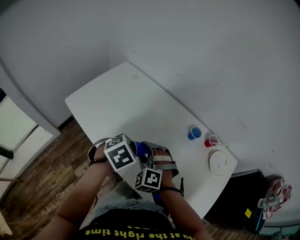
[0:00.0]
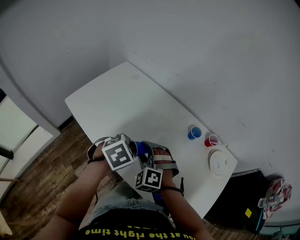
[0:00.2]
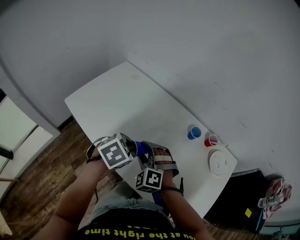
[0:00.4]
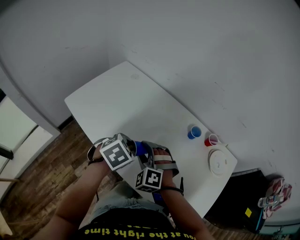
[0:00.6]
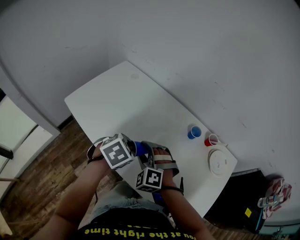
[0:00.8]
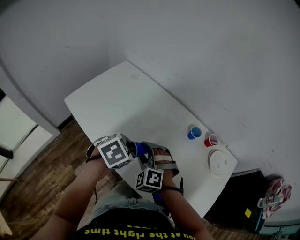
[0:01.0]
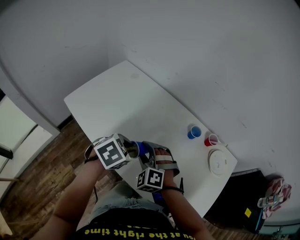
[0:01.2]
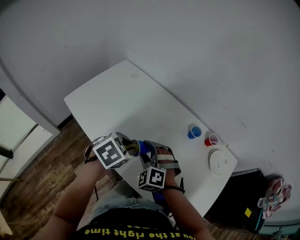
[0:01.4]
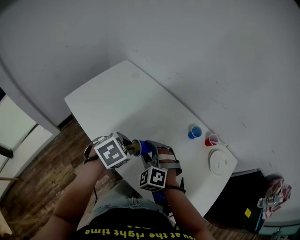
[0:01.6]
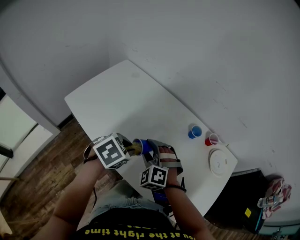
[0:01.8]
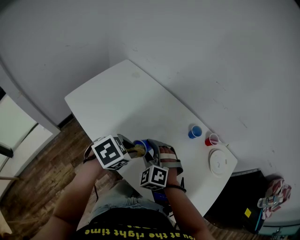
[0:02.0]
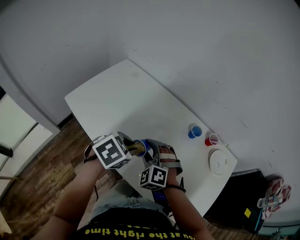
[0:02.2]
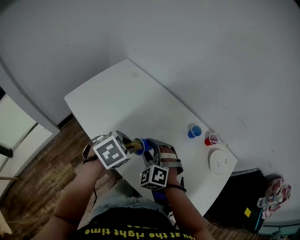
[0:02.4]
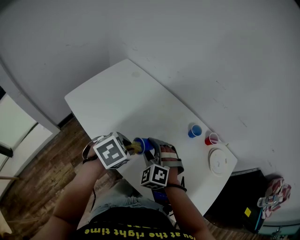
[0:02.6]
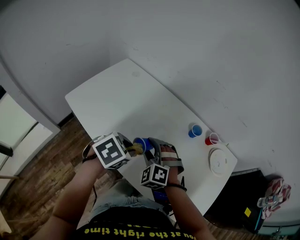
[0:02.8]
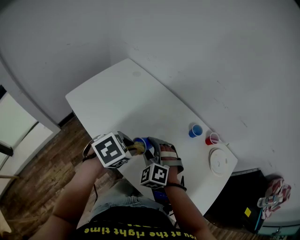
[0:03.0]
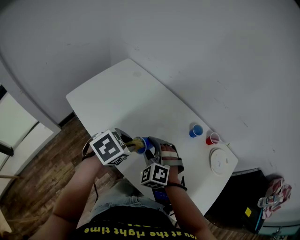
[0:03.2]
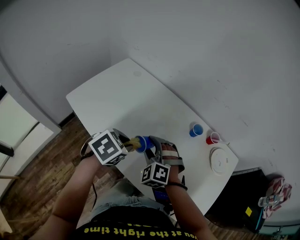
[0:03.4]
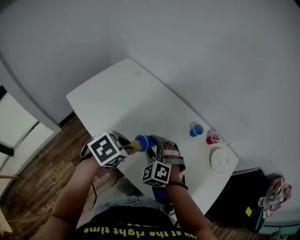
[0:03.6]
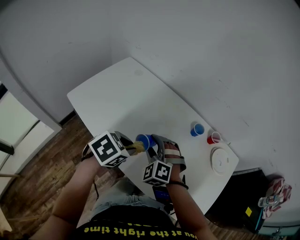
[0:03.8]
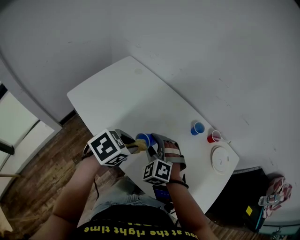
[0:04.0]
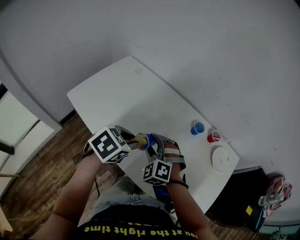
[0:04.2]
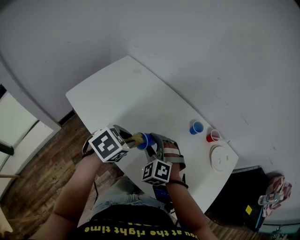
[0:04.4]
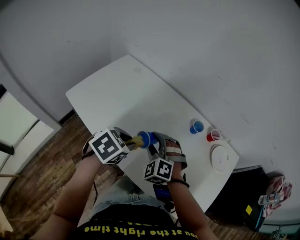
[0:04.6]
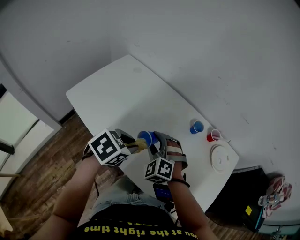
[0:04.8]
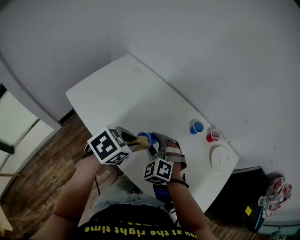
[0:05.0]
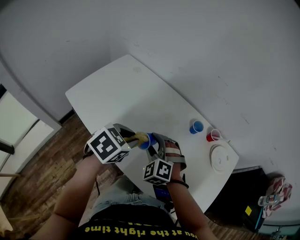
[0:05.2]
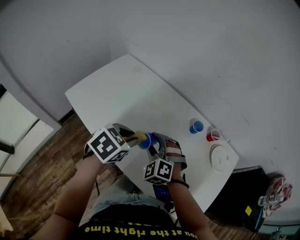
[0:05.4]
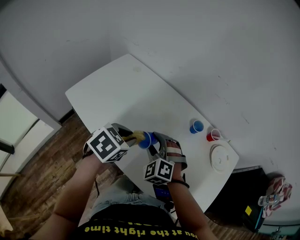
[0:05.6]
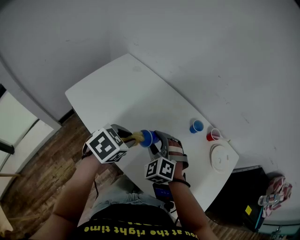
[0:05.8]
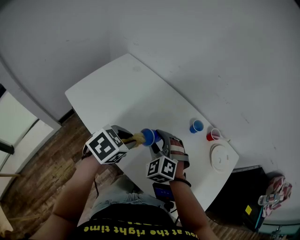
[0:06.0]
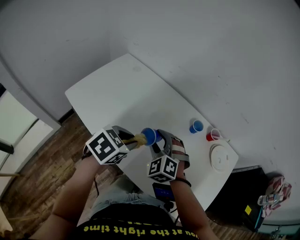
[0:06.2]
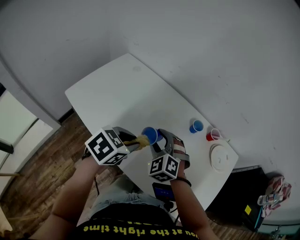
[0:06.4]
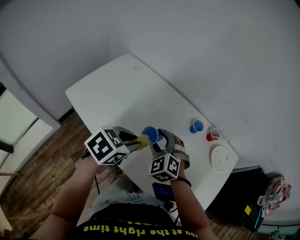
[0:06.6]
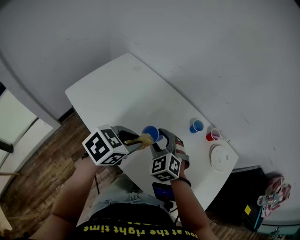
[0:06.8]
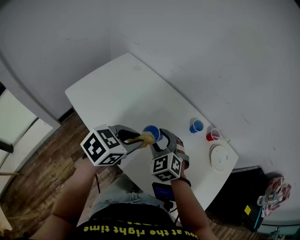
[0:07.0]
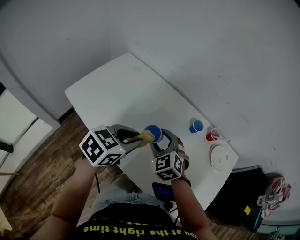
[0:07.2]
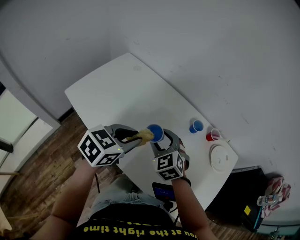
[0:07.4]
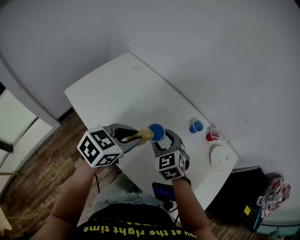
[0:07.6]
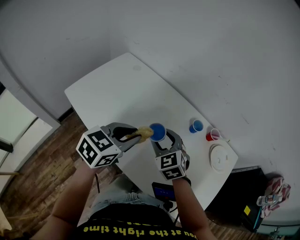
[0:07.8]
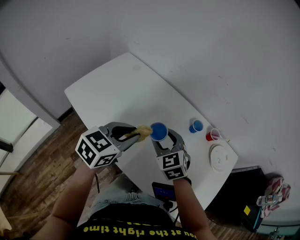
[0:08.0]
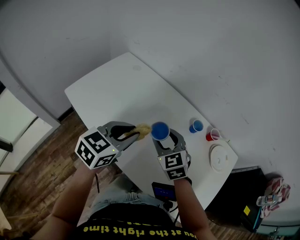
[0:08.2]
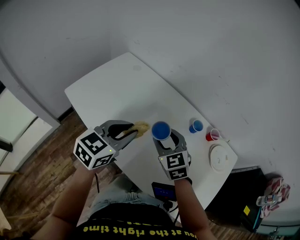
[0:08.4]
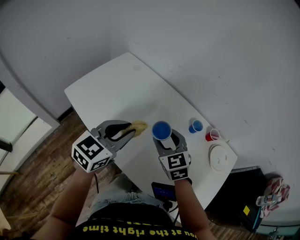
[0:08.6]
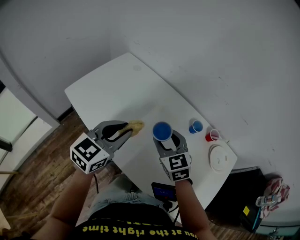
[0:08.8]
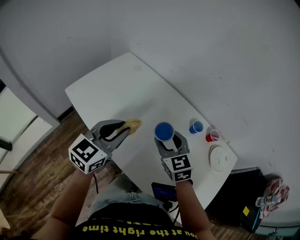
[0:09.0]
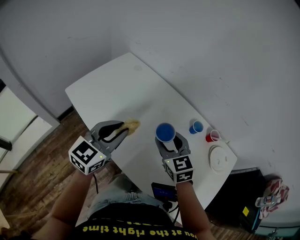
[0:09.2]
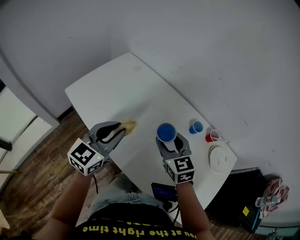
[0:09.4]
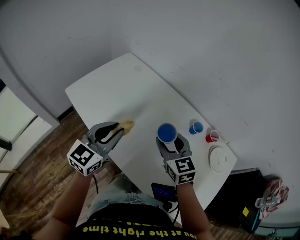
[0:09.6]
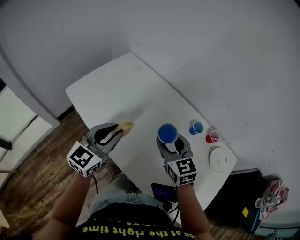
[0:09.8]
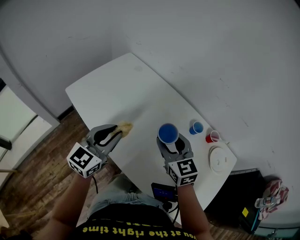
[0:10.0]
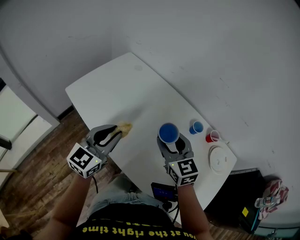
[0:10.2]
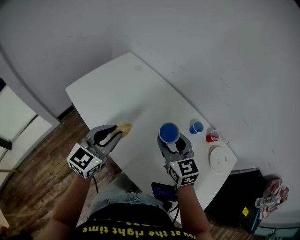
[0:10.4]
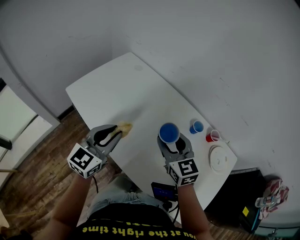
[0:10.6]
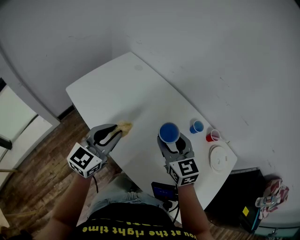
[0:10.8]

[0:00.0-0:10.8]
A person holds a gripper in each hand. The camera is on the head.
0:00.0 to 0:06.2: There are only small adjustments of the grippers.
0:06.2 to 0:07.8: The left gripper ends up approximately 5 cm from where it was, and changes its angle by about 20 degrees; the right gripper changes its angle by roughly 30 degrees.
0:07.8 to 0:09.2: The left gripper heads to the left, covering some 5 cm, and rotates about 20 degrees.
0:09.2 to 0:10.8: The grippers stay close to where they were, moving slightly.

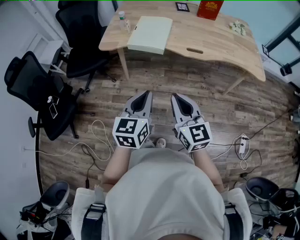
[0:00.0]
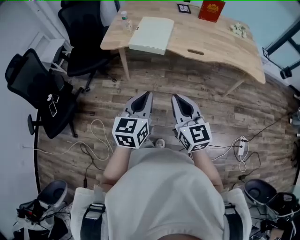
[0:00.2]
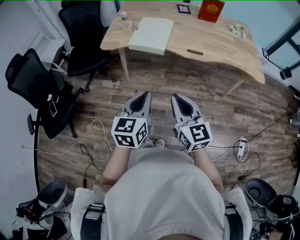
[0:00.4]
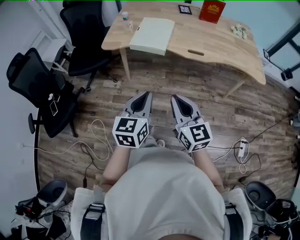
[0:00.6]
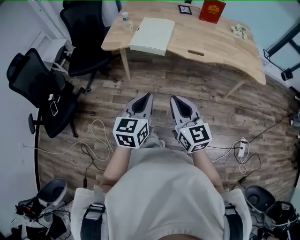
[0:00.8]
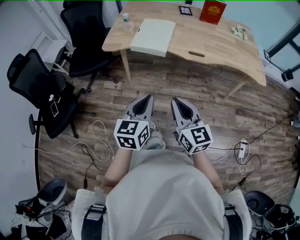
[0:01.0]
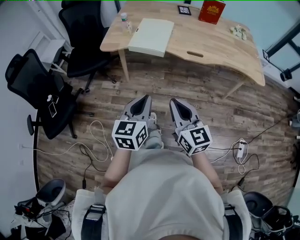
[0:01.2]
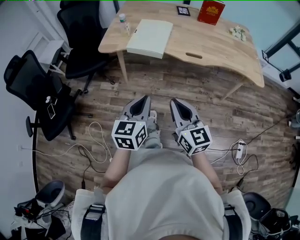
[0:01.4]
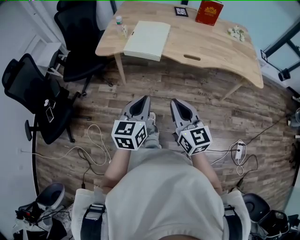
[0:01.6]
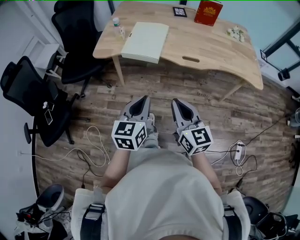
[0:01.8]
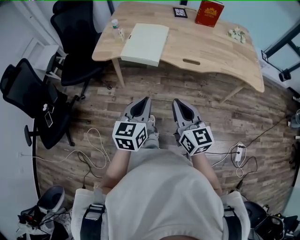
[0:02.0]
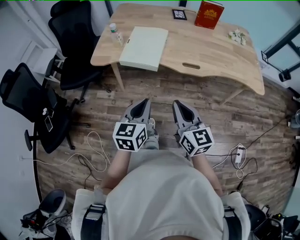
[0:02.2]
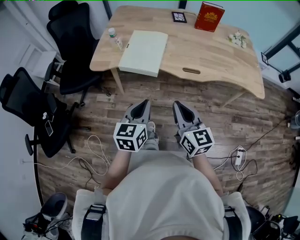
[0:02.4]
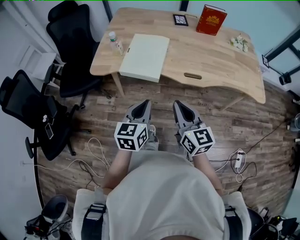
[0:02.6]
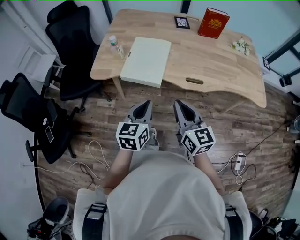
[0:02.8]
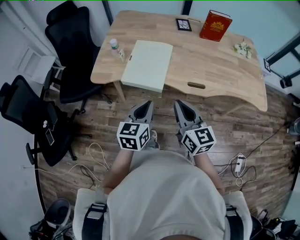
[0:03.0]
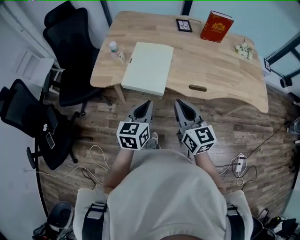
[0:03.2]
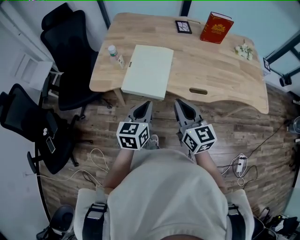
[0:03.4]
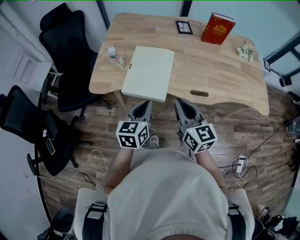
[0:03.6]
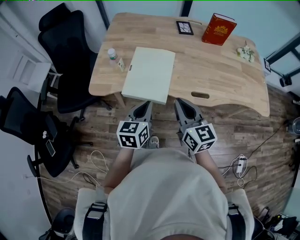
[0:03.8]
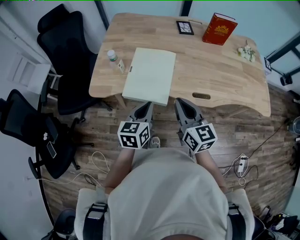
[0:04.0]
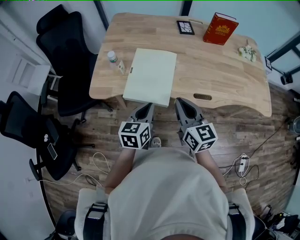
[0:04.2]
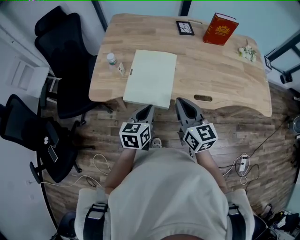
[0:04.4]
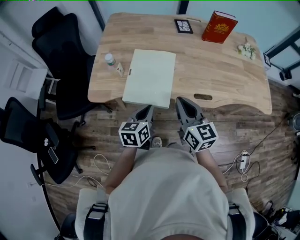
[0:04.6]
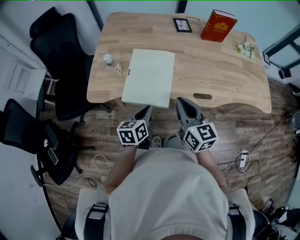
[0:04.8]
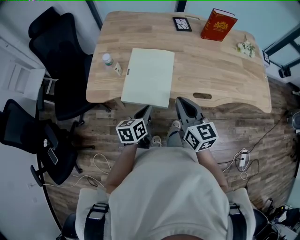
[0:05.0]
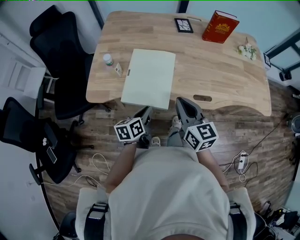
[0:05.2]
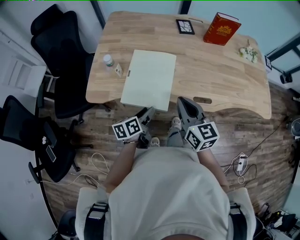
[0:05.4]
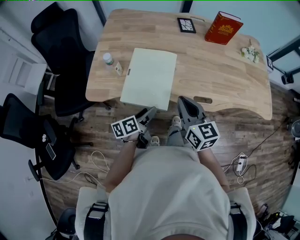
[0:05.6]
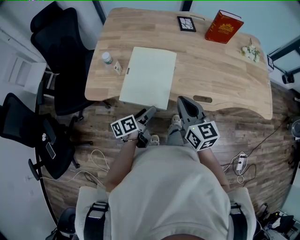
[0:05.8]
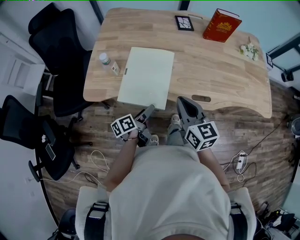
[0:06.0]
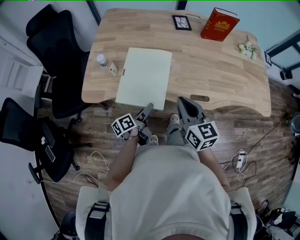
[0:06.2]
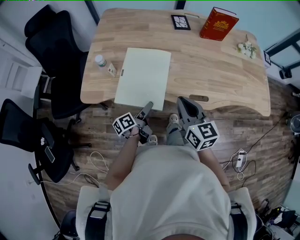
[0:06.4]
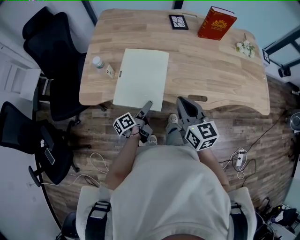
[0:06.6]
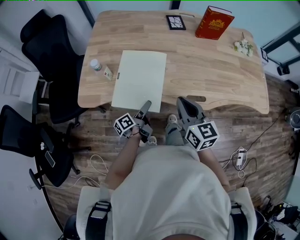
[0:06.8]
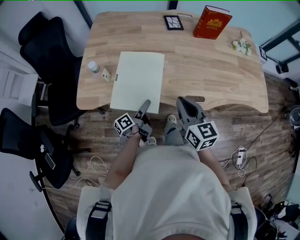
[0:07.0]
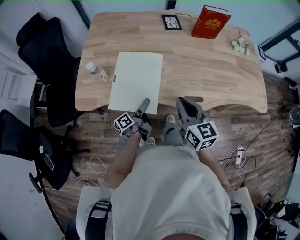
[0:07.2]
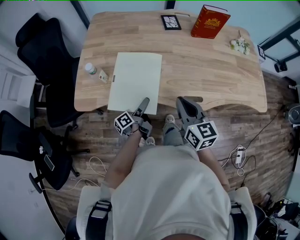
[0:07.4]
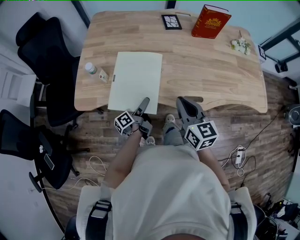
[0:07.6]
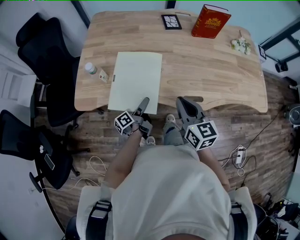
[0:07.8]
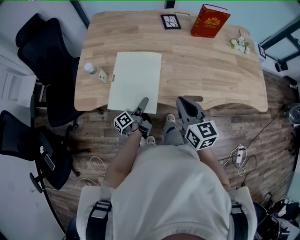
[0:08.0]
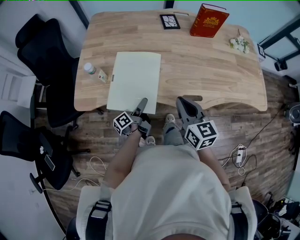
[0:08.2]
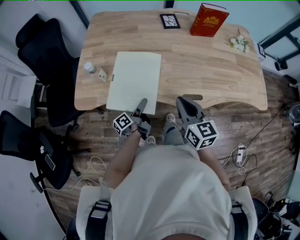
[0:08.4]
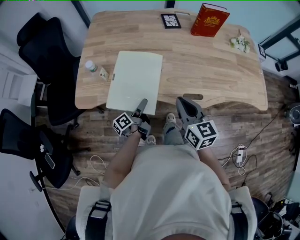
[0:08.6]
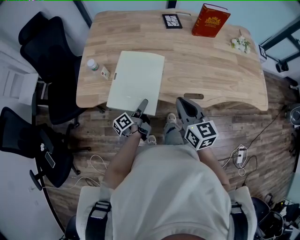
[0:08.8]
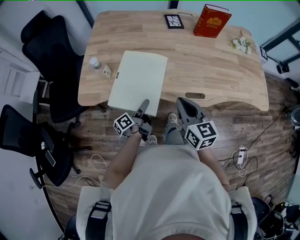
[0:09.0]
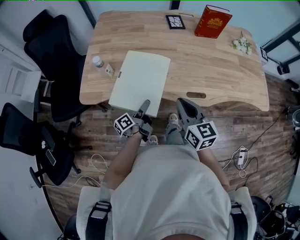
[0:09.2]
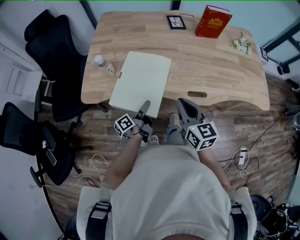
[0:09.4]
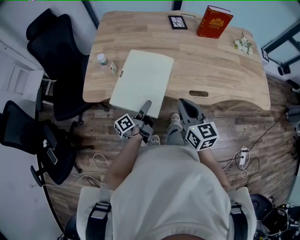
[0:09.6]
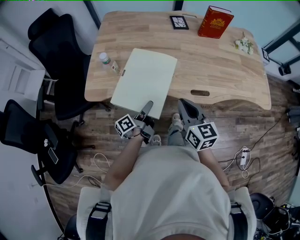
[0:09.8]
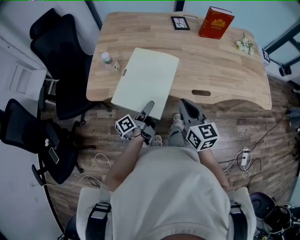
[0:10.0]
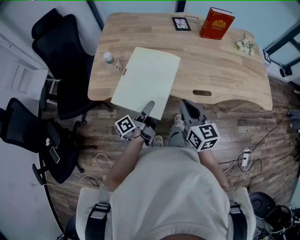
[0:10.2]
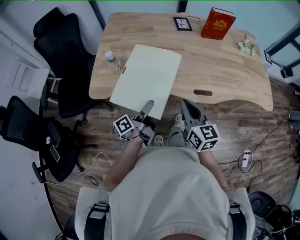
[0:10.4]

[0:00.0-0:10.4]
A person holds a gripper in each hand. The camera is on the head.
0:00.0 to 0:01.4: The grippers make only small movements.
0:01.4 to 0:03.0: The grippers both shift forward by roughly 25 cm.
0:03.0 to 0:04.4: The right gripper moves forward, approximately 10 cm. Meanwhile the left gripper is displaced forward and downward by roughly 15 cm.
0:04.4 to 0:06.0: The left gripper shifts about 10 cm downward, rolls counterclockwise, seen from behind, by some 50 degrees, and opens.
0:06.0 to 0:07.4: The left gripper shifts about 5 cm forward.
0:07.4 to 0:09.0: There are only small adjustments of the grippers.
0:09.0 to 0:10.4: The left gripper goes some 10 cm upward, while the right gripper shifts by roughly 5 cm.

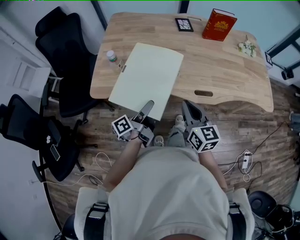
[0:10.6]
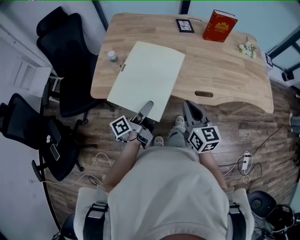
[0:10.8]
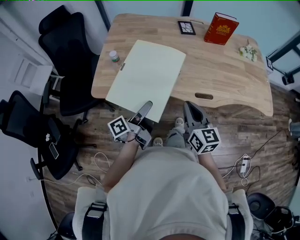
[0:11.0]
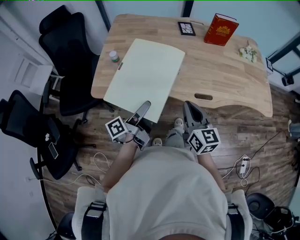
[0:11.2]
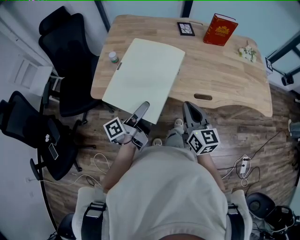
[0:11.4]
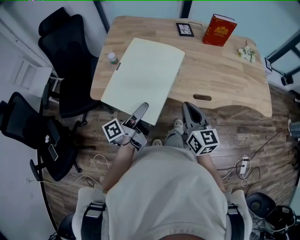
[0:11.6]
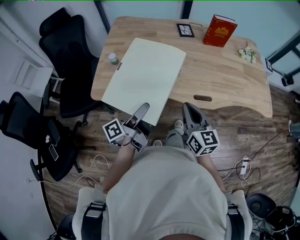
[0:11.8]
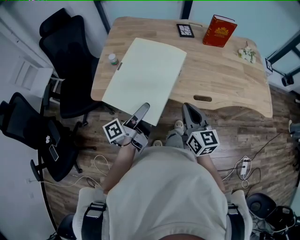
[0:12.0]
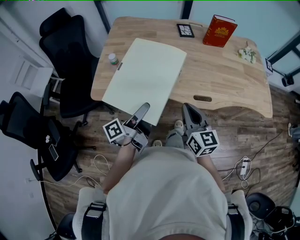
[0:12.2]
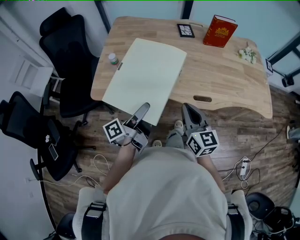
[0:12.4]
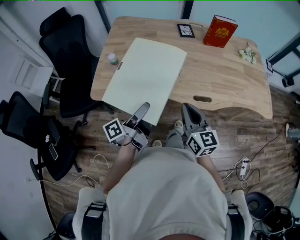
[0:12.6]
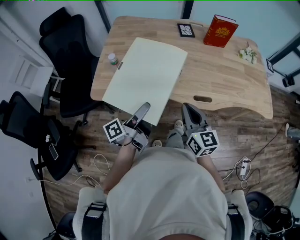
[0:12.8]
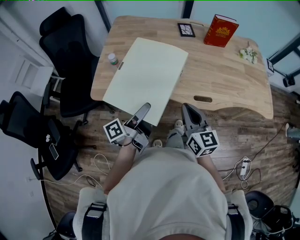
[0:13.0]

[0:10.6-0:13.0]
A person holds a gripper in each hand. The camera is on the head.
0:10.6 to 0:11.8: The left gripper goes some 5 cm upward.
0:11.8 to 0:13.0: Neither gripper changes place.
